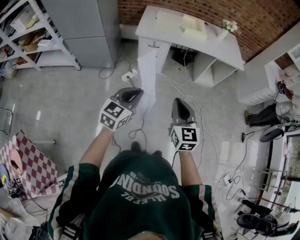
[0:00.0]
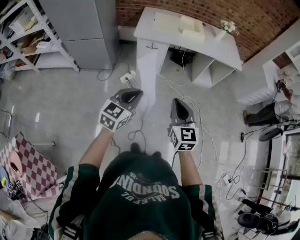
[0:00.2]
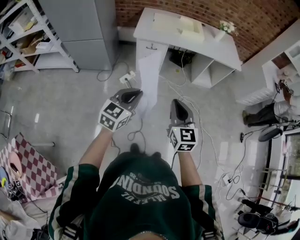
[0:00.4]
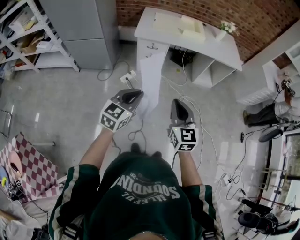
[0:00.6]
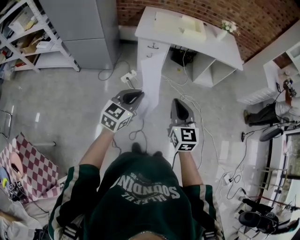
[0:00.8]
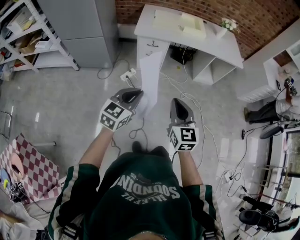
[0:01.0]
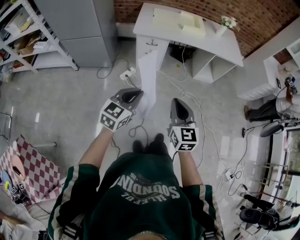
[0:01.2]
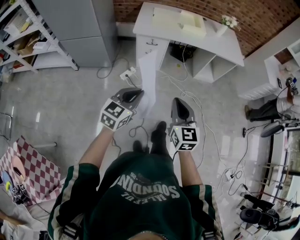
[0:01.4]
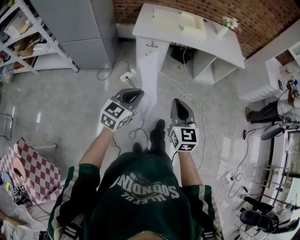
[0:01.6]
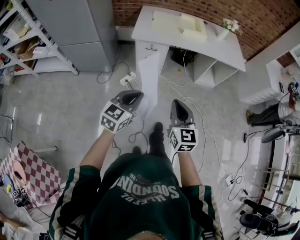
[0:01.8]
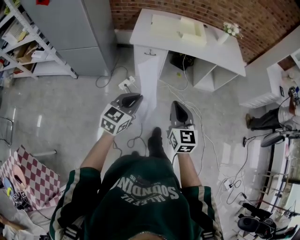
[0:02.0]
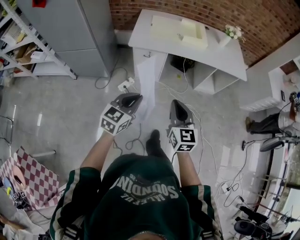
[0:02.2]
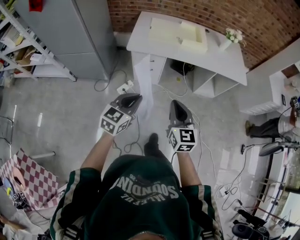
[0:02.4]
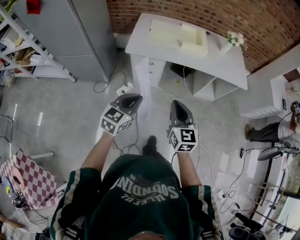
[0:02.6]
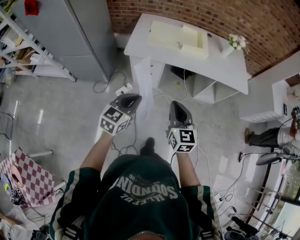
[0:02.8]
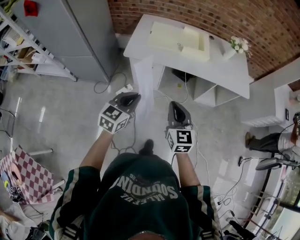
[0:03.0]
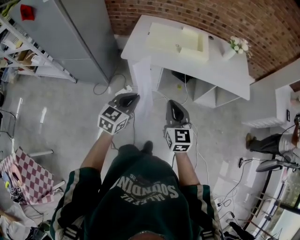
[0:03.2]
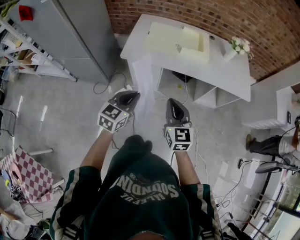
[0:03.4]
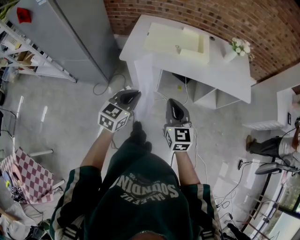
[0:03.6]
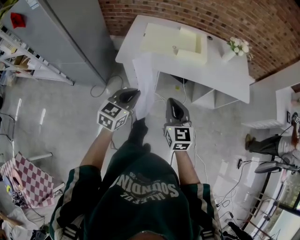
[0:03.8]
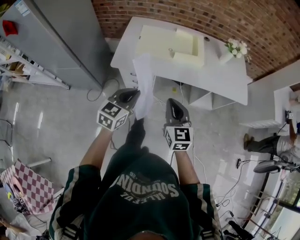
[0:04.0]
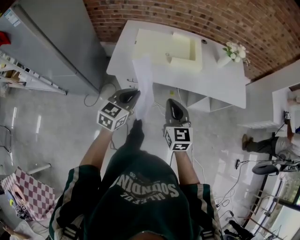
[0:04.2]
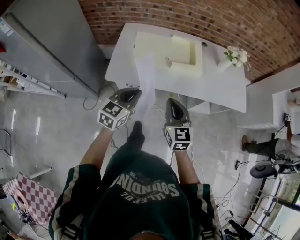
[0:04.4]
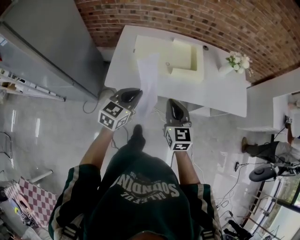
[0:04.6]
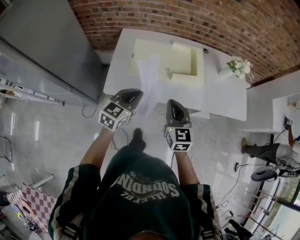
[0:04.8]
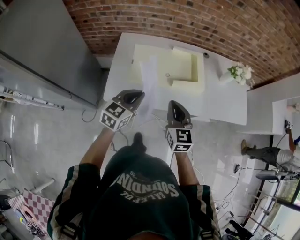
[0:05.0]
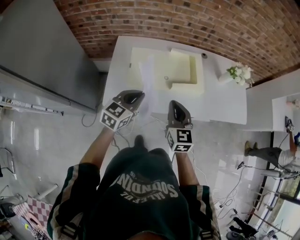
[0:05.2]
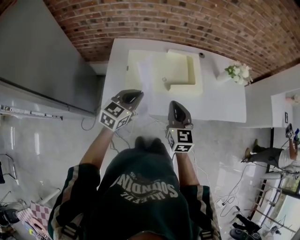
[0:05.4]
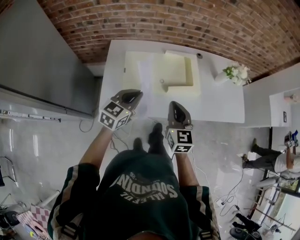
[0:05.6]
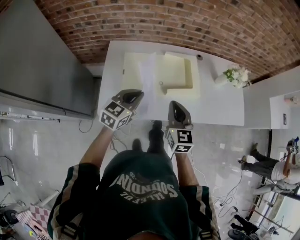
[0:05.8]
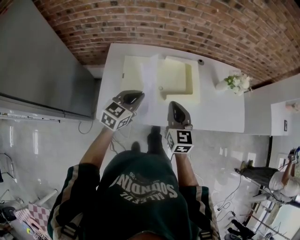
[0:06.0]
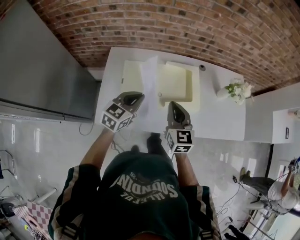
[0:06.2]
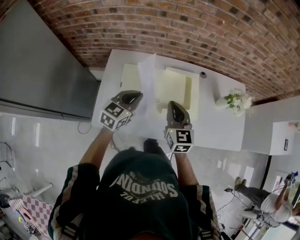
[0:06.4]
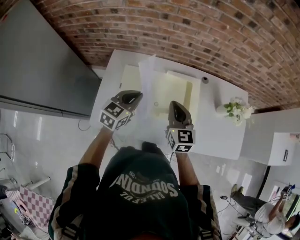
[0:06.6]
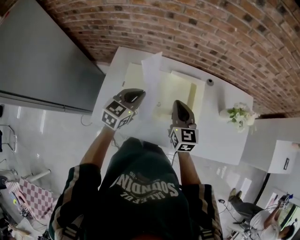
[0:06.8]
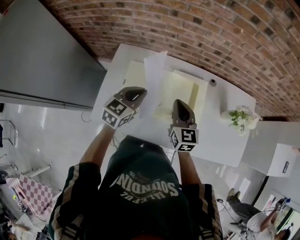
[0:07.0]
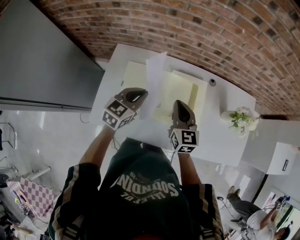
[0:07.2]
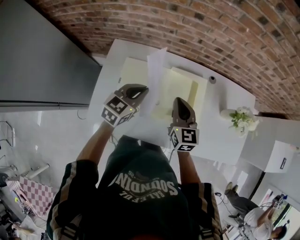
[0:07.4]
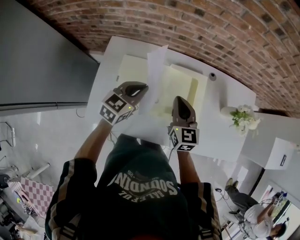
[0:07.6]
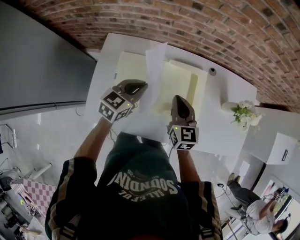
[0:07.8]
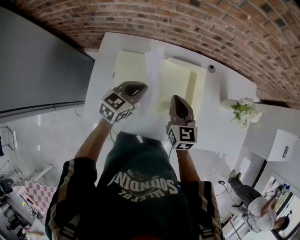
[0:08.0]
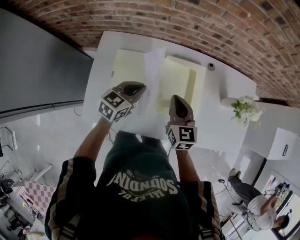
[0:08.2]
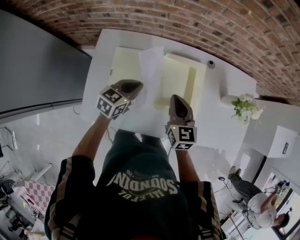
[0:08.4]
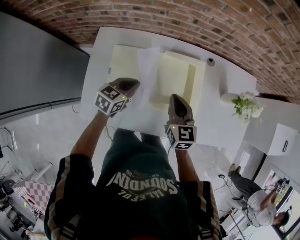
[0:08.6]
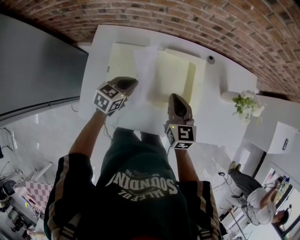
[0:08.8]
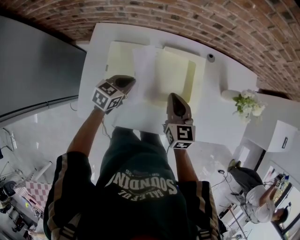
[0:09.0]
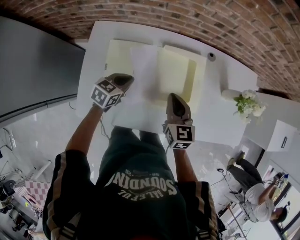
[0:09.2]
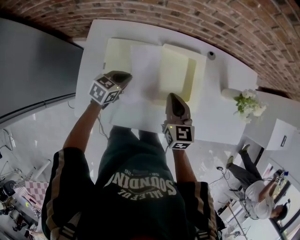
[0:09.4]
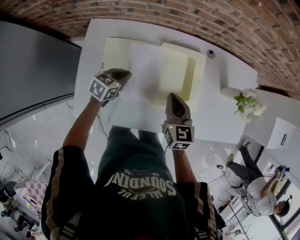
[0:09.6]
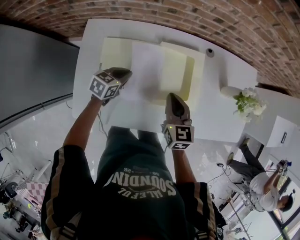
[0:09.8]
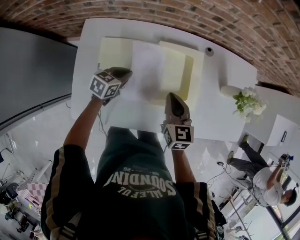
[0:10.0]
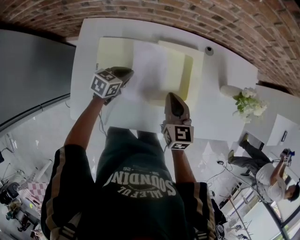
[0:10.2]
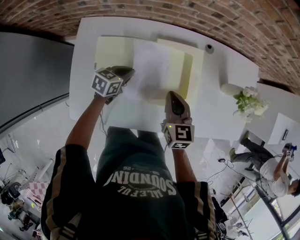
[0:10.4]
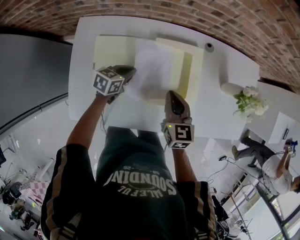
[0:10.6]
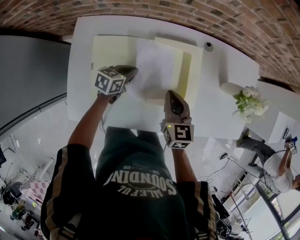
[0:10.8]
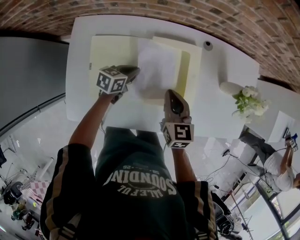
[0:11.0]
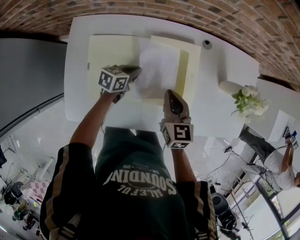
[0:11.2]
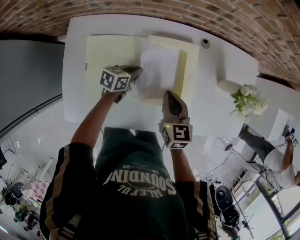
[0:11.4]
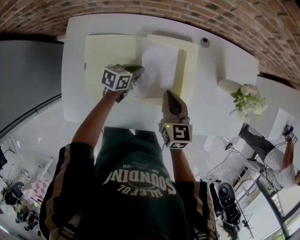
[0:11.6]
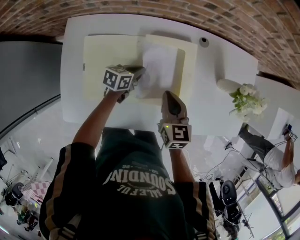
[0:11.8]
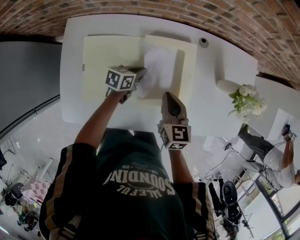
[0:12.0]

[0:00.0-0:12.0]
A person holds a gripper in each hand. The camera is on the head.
0:00.0 to 0:01.6: There are only small adjustments of the grippers.
0:01.6 to 0:03.0: Both grippers travel together forward, some 25 cm.
0:03.0 to 0:04.4: The grippers both shift forward by about 25 cm.
0:04.4 to 0:06.0: Both grippers move forward, approximately 25 cm.
0:06.0 to 0:07.6: The grippers both shift forward by approximately 20 cm.
0:07.6 to 0:09.0: The right gripper goes approximately 5 cm downward, while the left gripper shifts some 15 cm downward.
0:09.0 to 0:10.4: The left gripper is displaced downward by about 5 cm.
0:10.4 to 0:12.0: The left gripper is displaced to the right by approximately 10 cm.

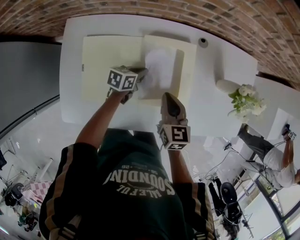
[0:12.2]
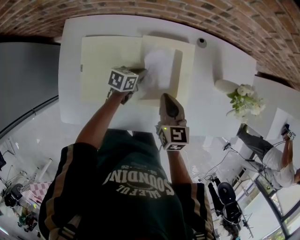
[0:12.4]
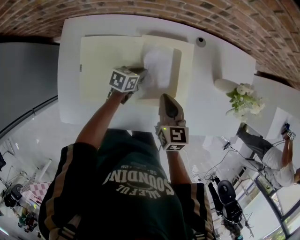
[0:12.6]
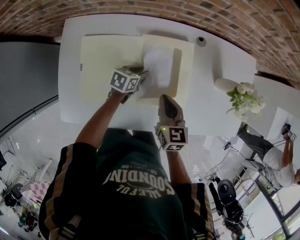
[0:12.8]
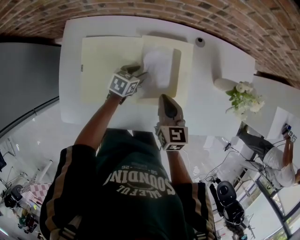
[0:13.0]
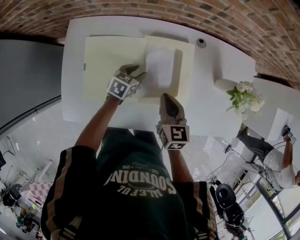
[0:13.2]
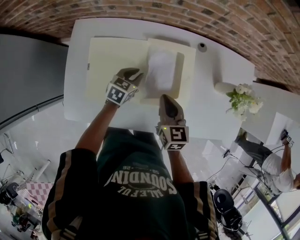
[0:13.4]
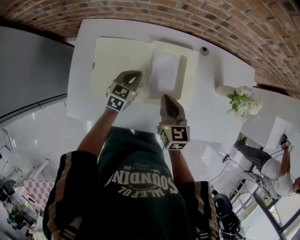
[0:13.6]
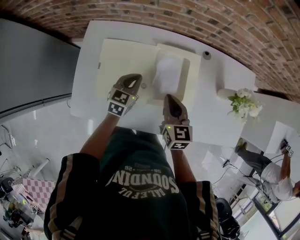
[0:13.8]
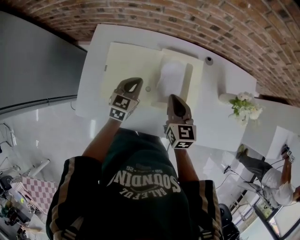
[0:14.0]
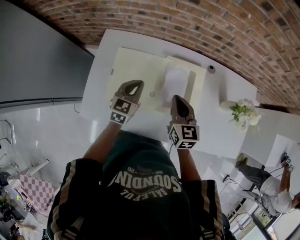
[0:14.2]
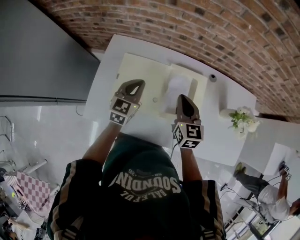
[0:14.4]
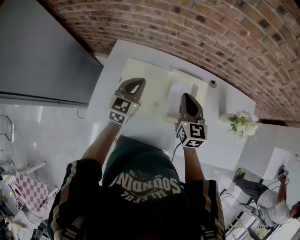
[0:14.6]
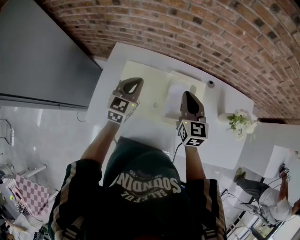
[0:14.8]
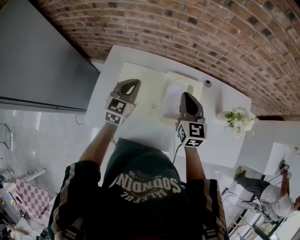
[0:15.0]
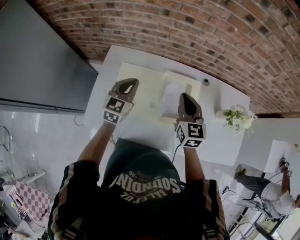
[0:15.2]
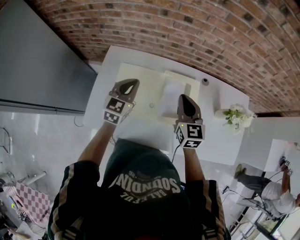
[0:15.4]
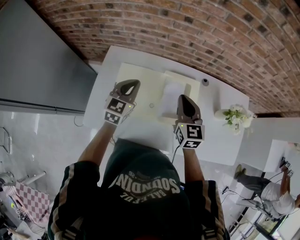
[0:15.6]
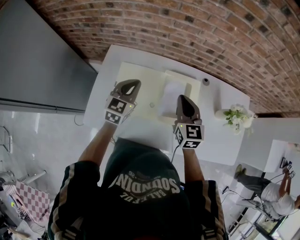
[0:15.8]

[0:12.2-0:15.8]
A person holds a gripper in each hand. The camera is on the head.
0:12.2 to 0:14.0: The left gripper heads upward, to the left and backward, covering roughly 20 cm, turns by some 40 degrees, and opens, then closes again, while the right gripper moves upward, roughly 5 cm.
0:14.0 to 0:15.8: Both grippers move upward, approximately 10 cm.

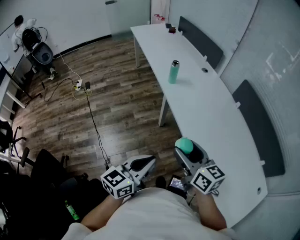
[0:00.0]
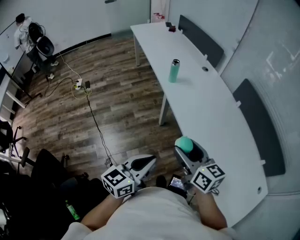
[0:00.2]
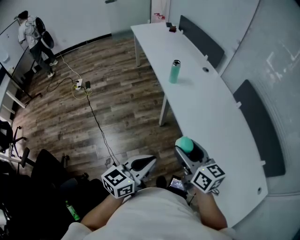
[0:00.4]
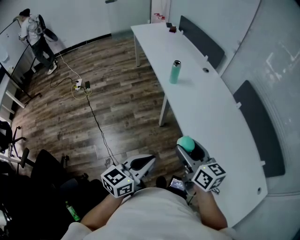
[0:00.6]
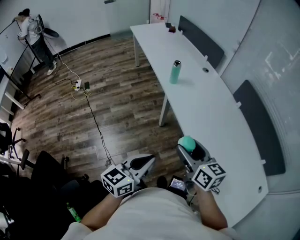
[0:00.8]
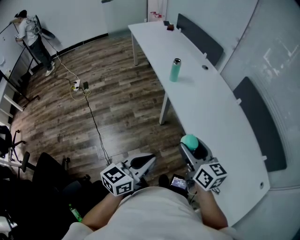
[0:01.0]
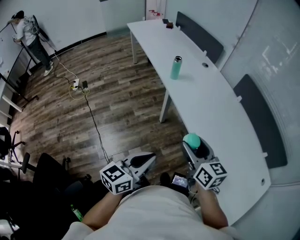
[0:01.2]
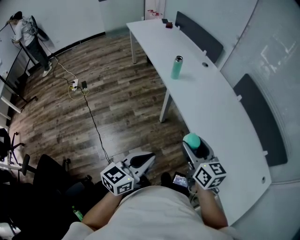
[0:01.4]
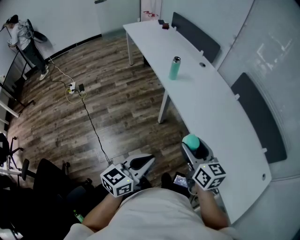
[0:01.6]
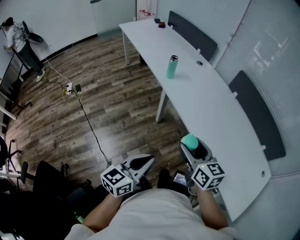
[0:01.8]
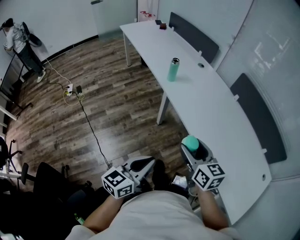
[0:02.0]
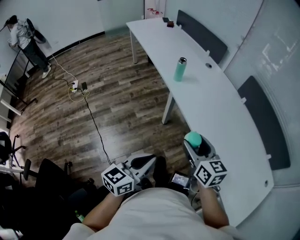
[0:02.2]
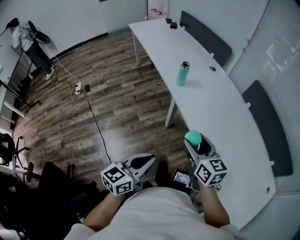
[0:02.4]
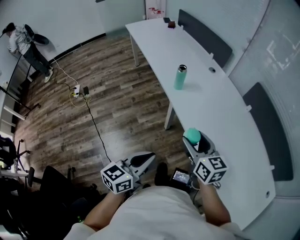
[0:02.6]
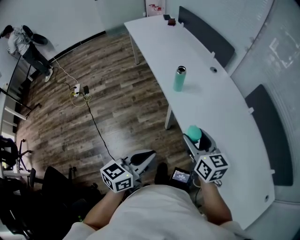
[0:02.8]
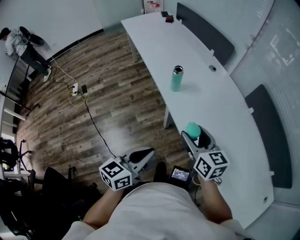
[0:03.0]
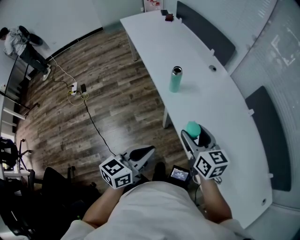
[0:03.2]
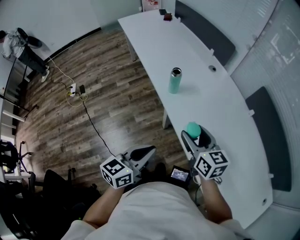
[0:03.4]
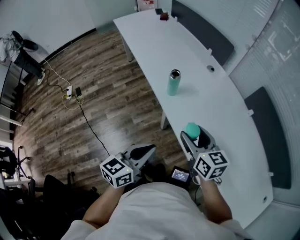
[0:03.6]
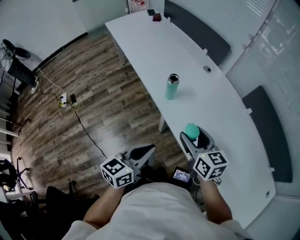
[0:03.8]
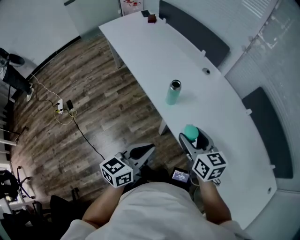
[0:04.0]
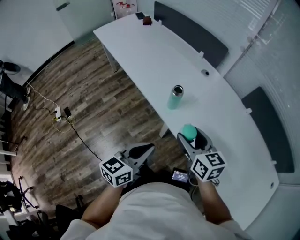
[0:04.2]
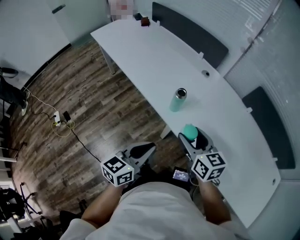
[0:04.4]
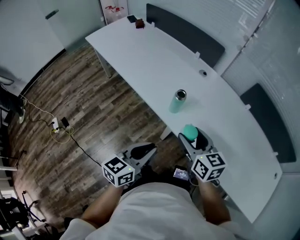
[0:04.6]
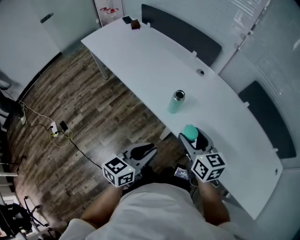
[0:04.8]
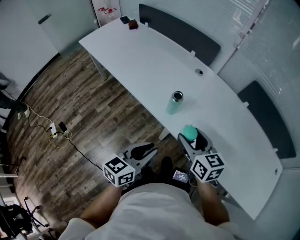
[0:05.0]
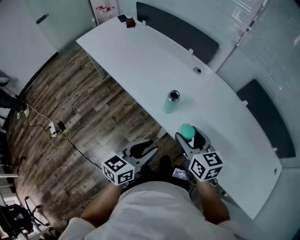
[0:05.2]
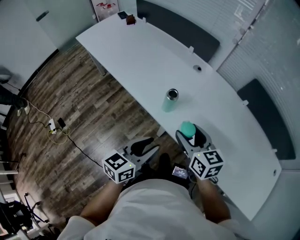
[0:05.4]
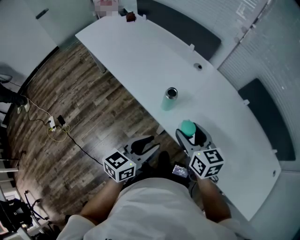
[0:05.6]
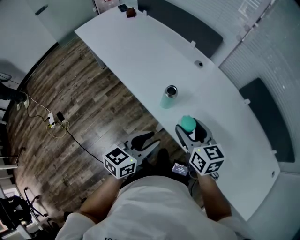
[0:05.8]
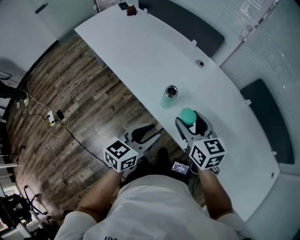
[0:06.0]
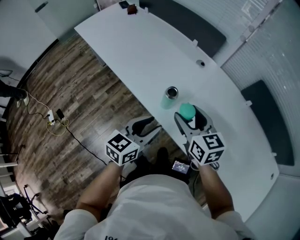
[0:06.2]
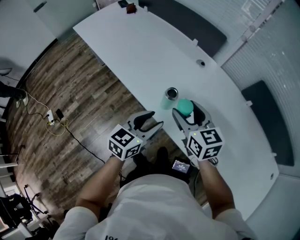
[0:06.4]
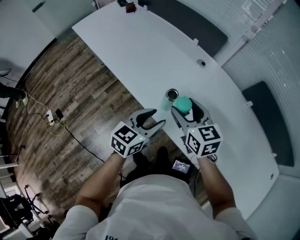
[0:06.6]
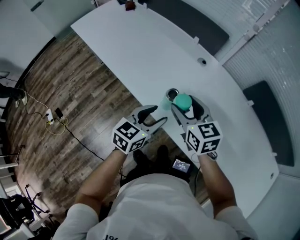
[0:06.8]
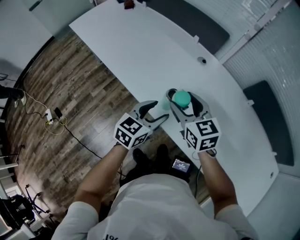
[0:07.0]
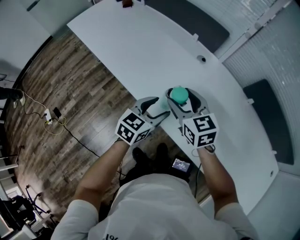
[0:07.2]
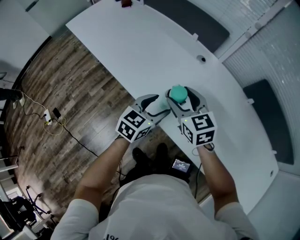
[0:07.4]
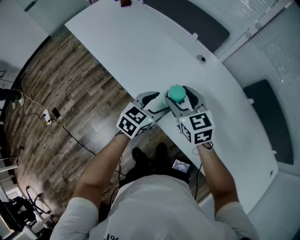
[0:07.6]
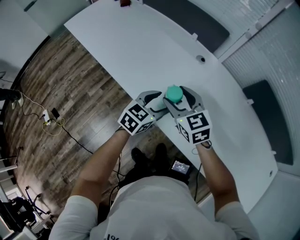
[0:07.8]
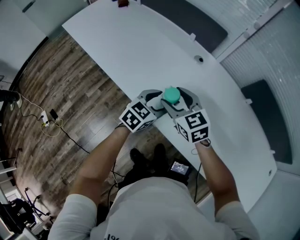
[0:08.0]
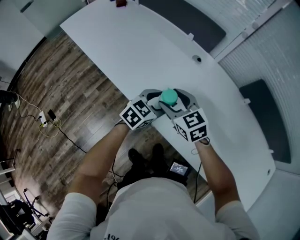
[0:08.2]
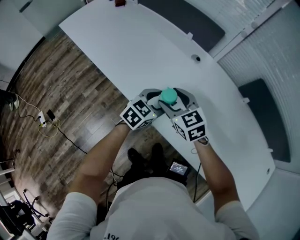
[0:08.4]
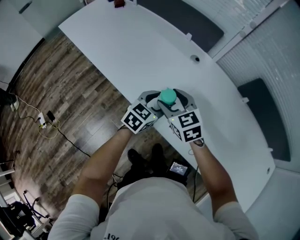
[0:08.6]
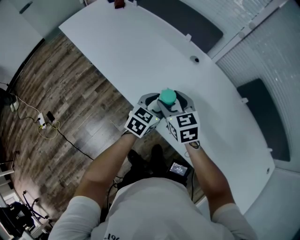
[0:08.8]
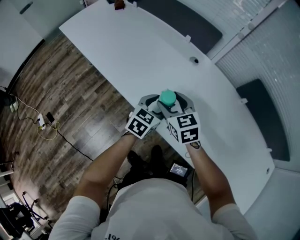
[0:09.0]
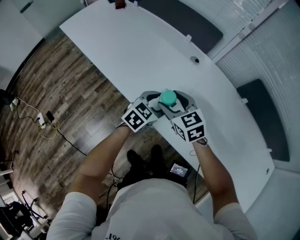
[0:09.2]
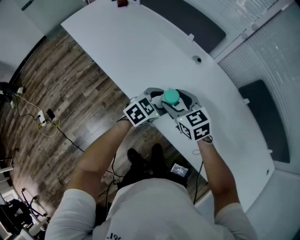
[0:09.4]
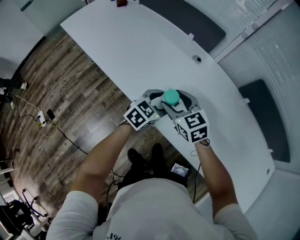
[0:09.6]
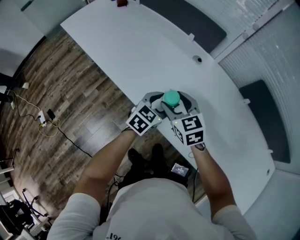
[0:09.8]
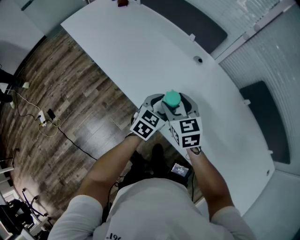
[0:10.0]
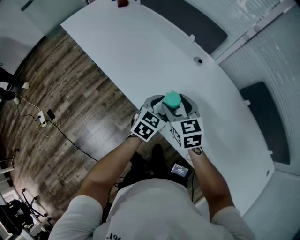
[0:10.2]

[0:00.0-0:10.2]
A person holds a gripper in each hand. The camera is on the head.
0:00.0 to 0:01.4: The left gripper shifts approximately 5 cm to the left.
0:01.4 to 0:03.0: The two grippers go about 20 cm forward.
0:03.0 to 0:04.4: Both grippers move forward and to the left, some 20 cm.
0:04.4 to 0:05.8: The grippers both shift forward by approximately 5 cm. The left gripper opens.
0:05.8 to 0:07.2: The right gripper heads forward and to the left, covering some 15 cm. The left gripper travels forward by about 15 cm, and opens up.
0:07.2 to 0:08.8: The left gripper changes place by about 5 cm. The right gripper goes roughly 5 cm downward.
0:08.8 to 0:10.2: The grippers stay close to where they were, moving slightly.
